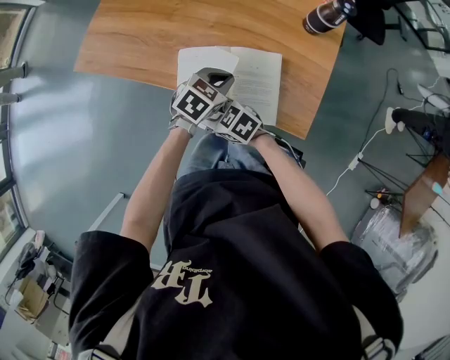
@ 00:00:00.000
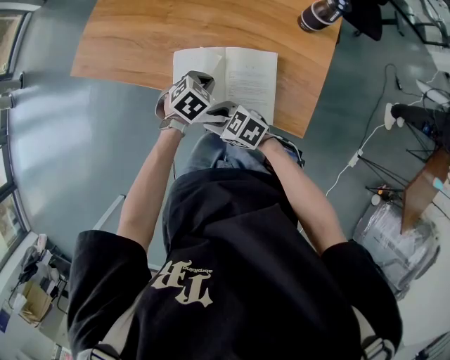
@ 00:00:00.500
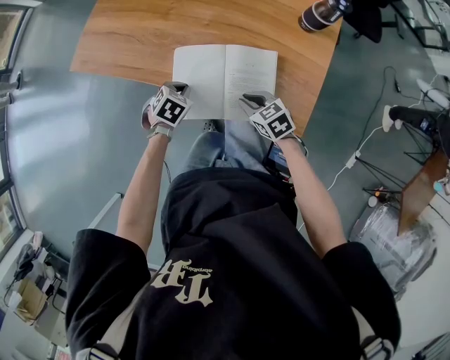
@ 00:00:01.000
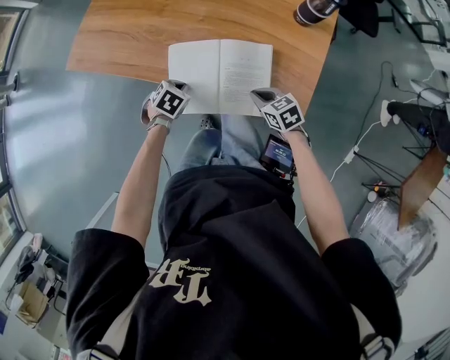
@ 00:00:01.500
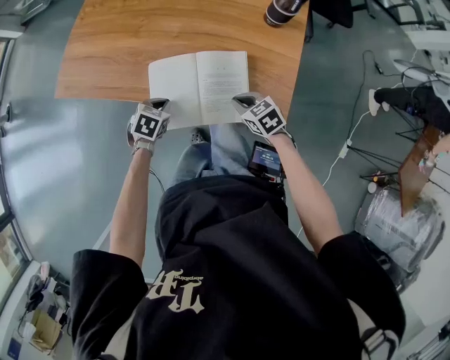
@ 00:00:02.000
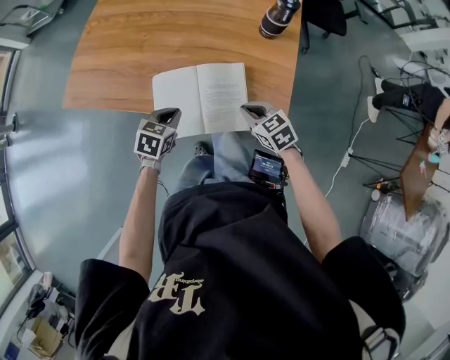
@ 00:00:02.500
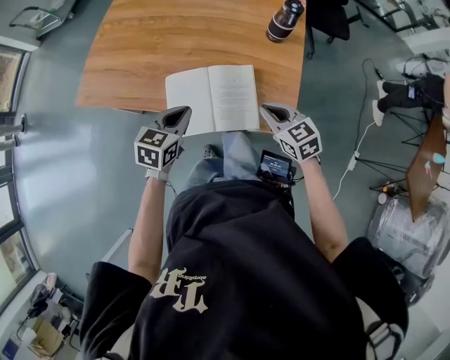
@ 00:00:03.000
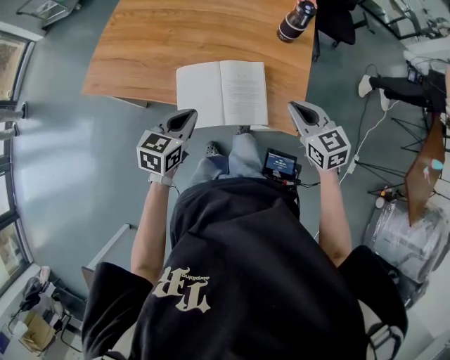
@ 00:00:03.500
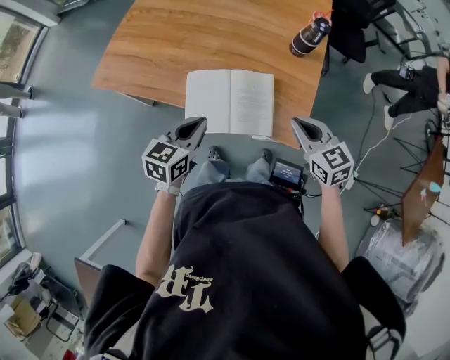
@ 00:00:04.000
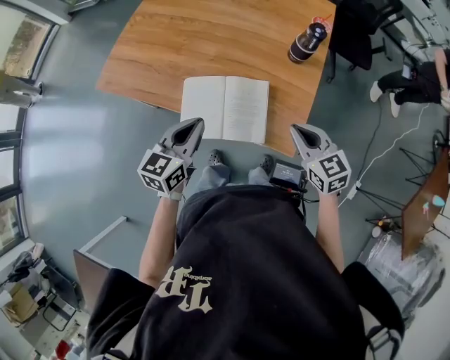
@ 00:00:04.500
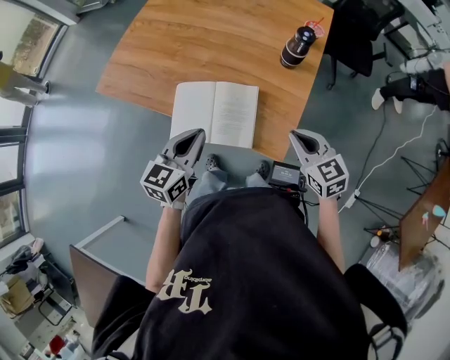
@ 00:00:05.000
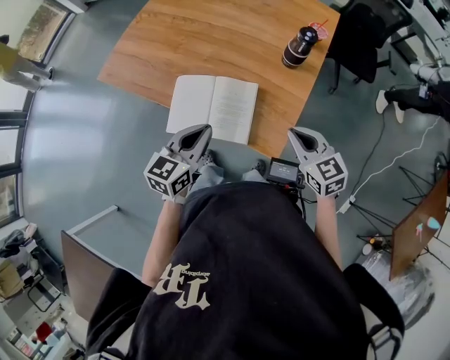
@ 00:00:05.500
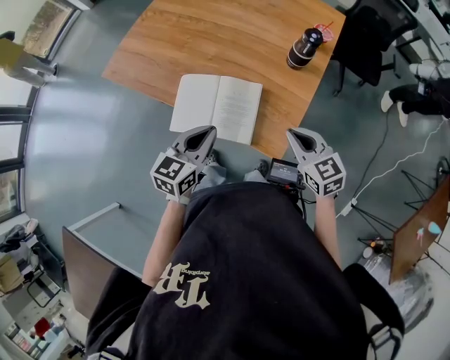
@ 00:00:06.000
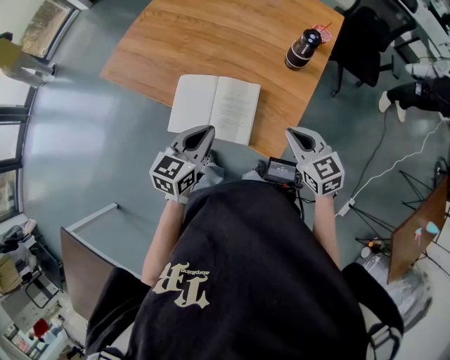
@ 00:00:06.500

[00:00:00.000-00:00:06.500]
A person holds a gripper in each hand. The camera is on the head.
00:00:00.000 to 00:00:02.000: The right gripper ends up approximately 20 cm from where it was, changes its angle by roughly 30 degrees, and closes up. Meanwhile the left gripper changes place by about 15 cm.
00:00:02.000 to 00:00:04.500: Both grippers travel together upward, approximately 25 cm. The left gripper angles its fingers upward, by some 40 degrees, while the right gripper turns by about 20 degrees.
00:00:04.500 to 00:00:06.500: The left gripper travels to the right by some 10 cm. The right gripper goes some 5 cm to the right.

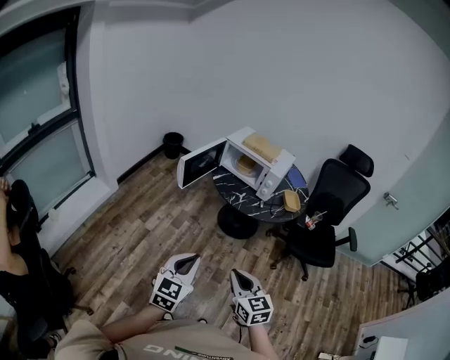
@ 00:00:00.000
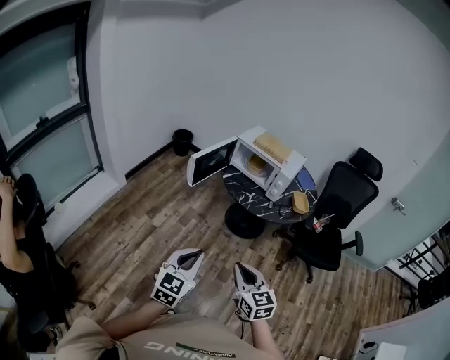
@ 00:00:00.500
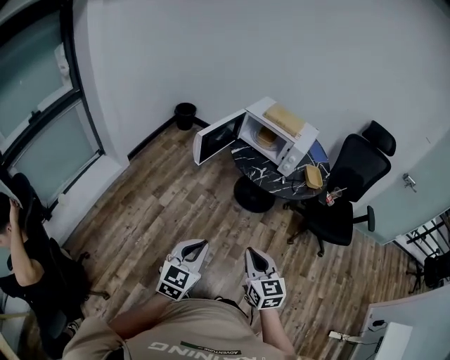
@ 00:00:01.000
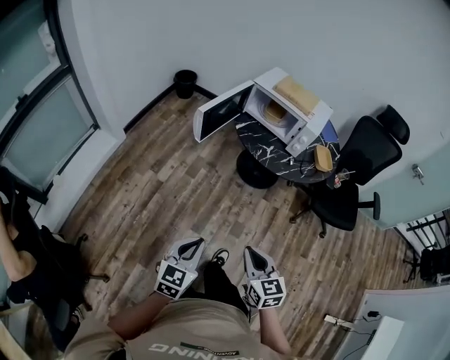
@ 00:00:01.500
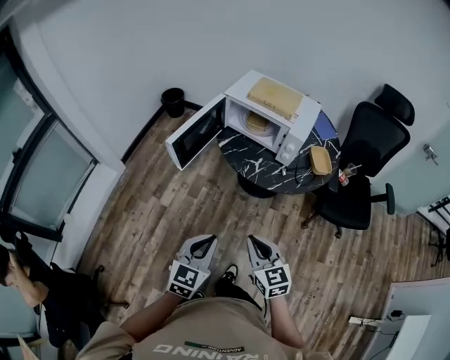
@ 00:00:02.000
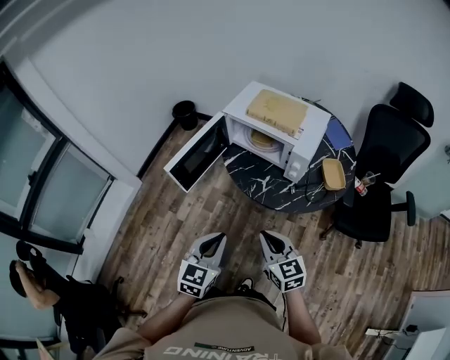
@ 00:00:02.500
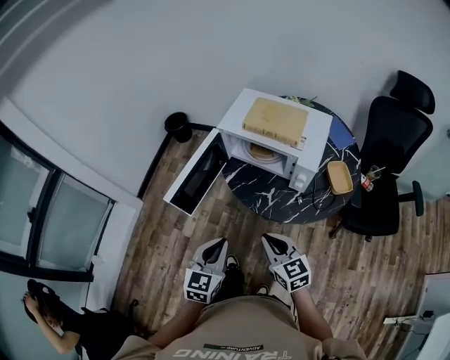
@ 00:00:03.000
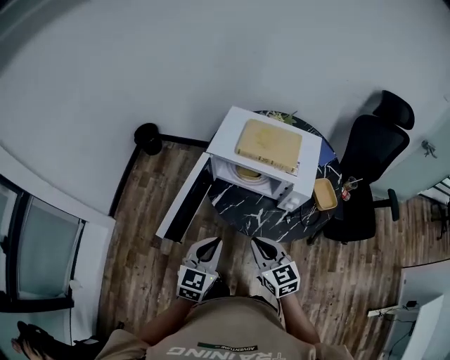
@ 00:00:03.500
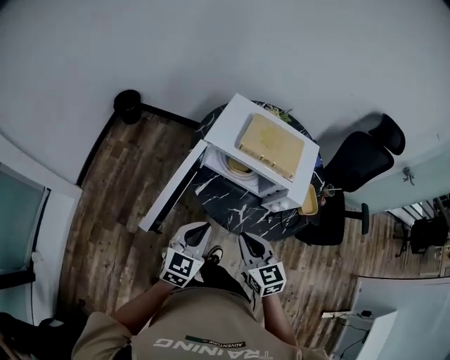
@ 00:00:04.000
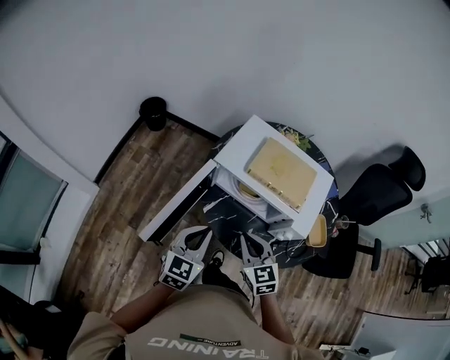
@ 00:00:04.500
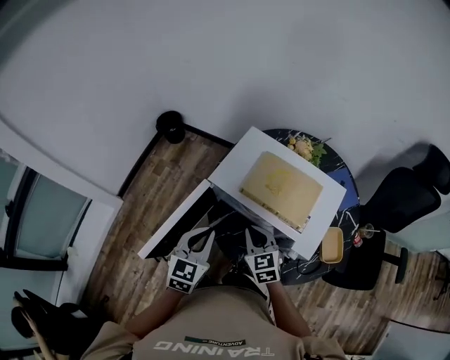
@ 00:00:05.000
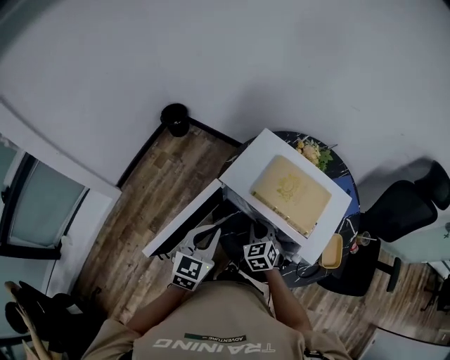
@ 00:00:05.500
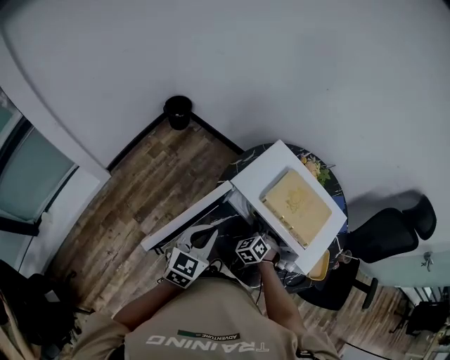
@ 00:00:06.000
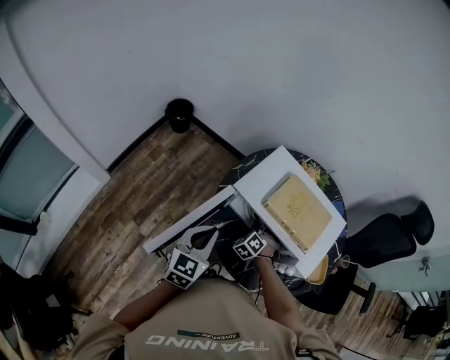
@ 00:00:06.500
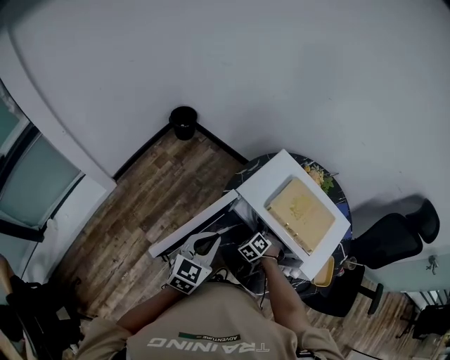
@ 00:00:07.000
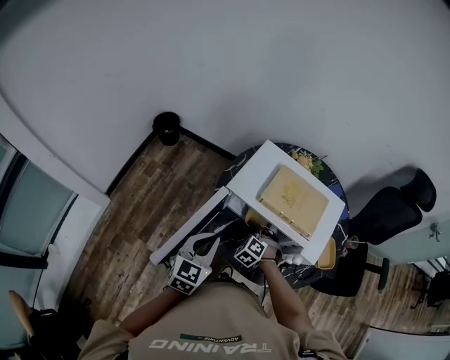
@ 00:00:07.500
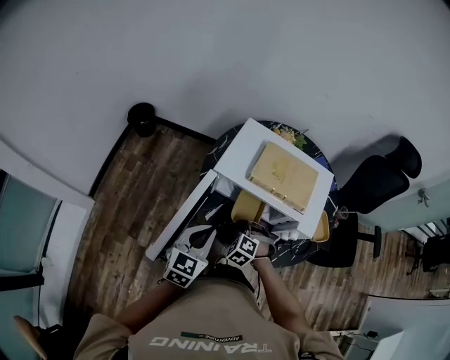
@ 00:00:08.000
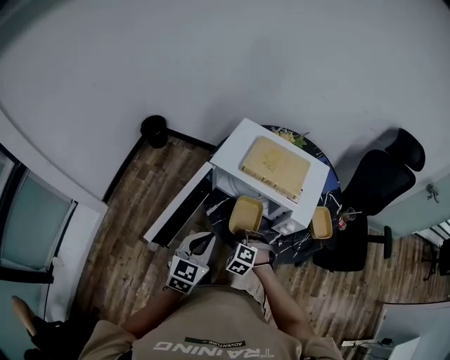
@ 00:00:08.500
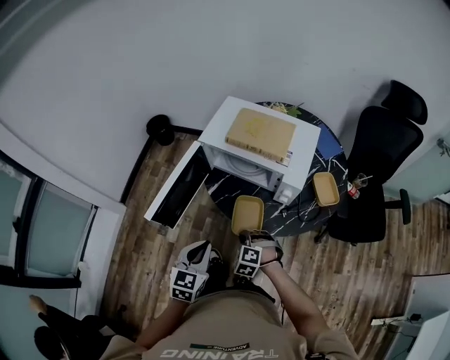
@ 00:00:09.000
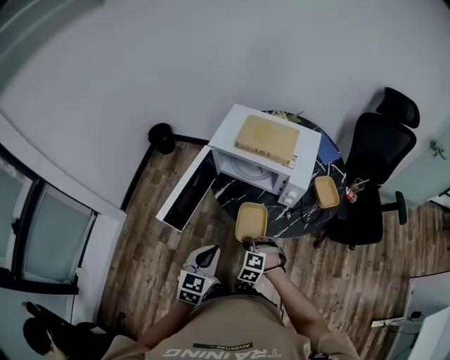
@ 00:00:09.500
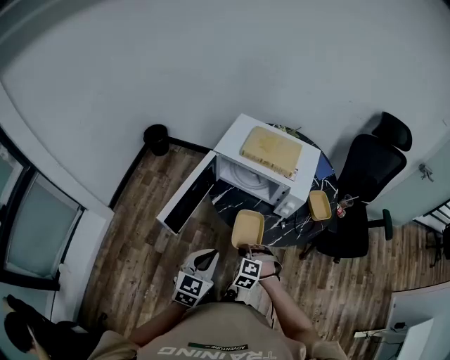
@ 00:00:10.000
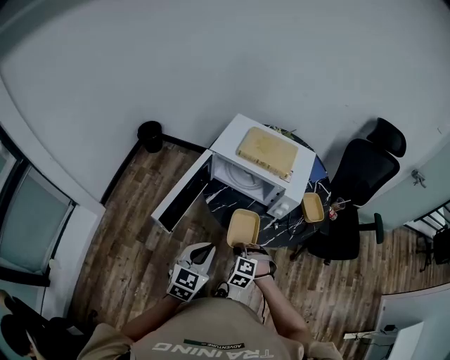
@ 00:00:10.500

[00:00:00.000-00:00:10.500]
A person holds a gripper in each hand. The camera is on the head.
00:00:00.000 to 00:00:02.000: The right gripper heads forward, covering about 20 cm. The left gripper heads forward and downward, covering approximately 20 cm.
00:00:02.000 to 00:00:04.000: Both grippers move forward, some 30 cm.
00:00:04.000 to 00:00:06.500: The right gripper moves forward and downward, some 35 cm, and rotates around the line of its fingers by some 50 degrees, counterclockwise from behind. The left gripper heads forward, covering about 10 cm.
00:00:06.500 to 00:00:08.500: The right gripper shifts about 20 cm backward; the left gripper shifts roughly 10 cm backward and to the right.
00:00:08.500 to 00:00:10.500: The two grippers go roughly 15 cm backward.

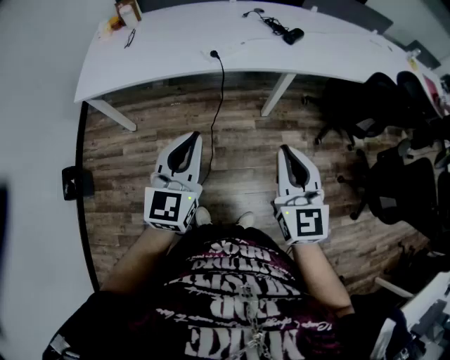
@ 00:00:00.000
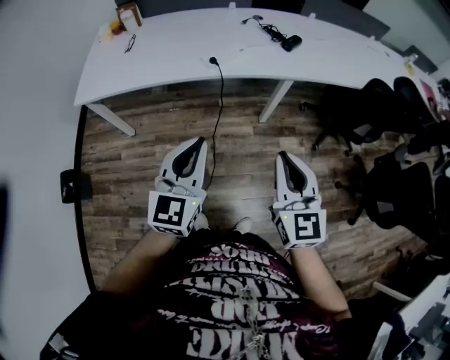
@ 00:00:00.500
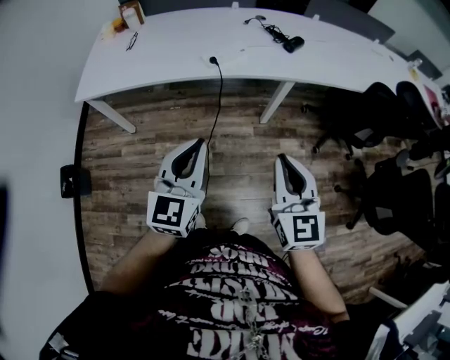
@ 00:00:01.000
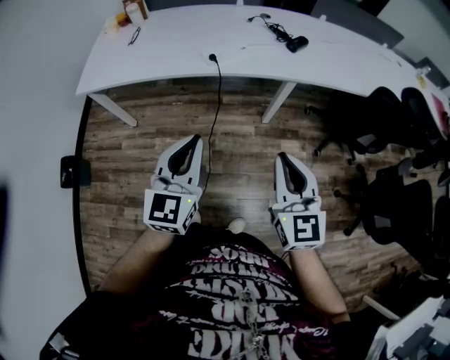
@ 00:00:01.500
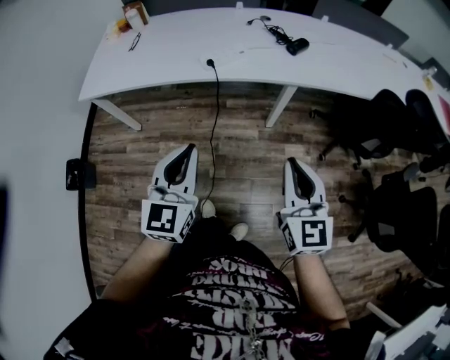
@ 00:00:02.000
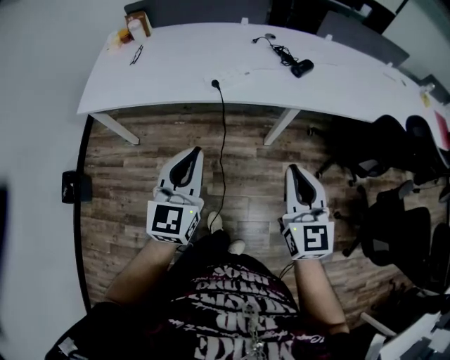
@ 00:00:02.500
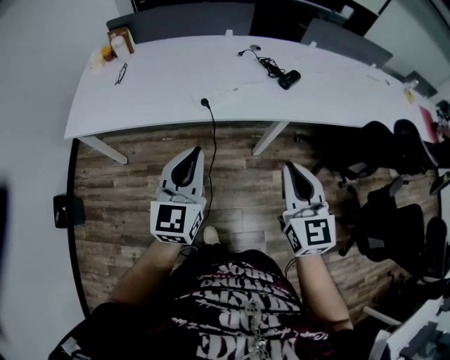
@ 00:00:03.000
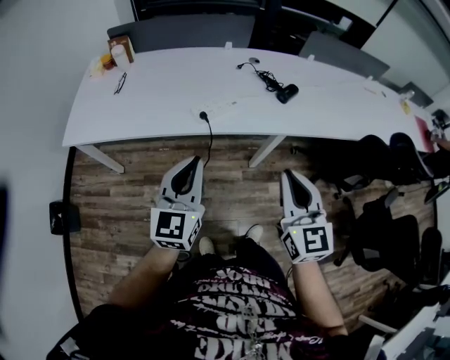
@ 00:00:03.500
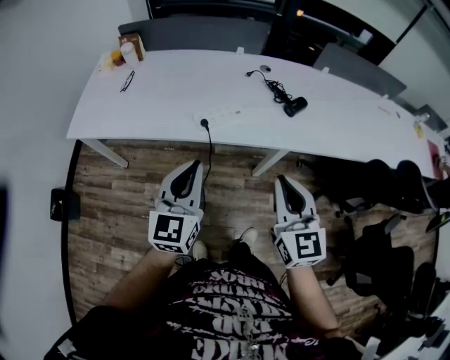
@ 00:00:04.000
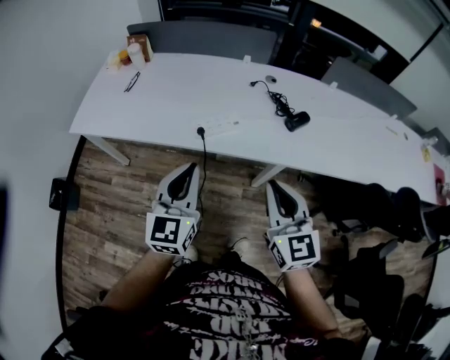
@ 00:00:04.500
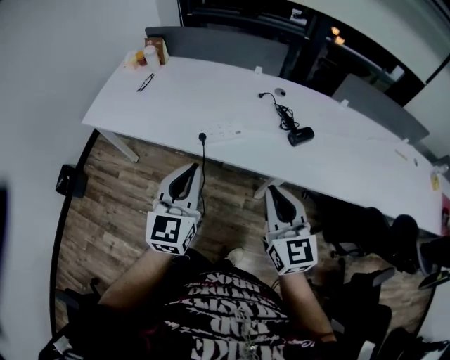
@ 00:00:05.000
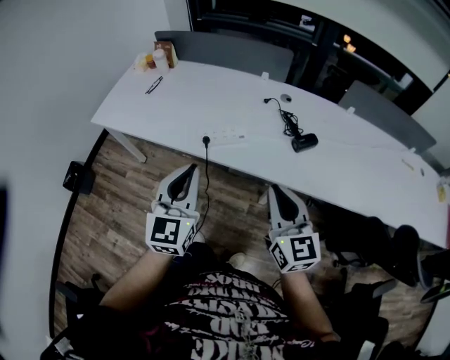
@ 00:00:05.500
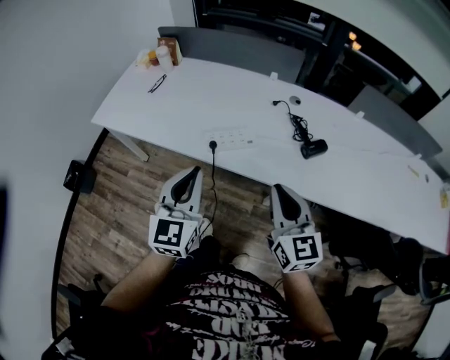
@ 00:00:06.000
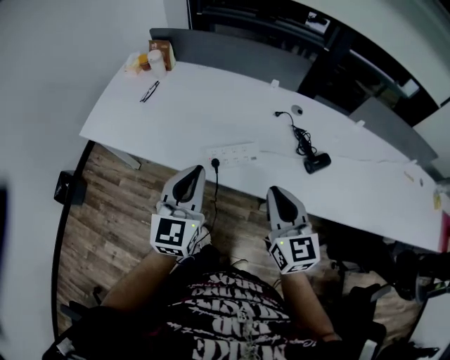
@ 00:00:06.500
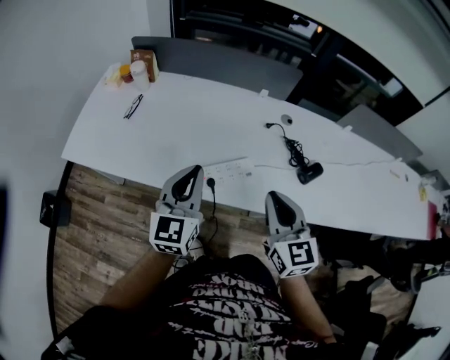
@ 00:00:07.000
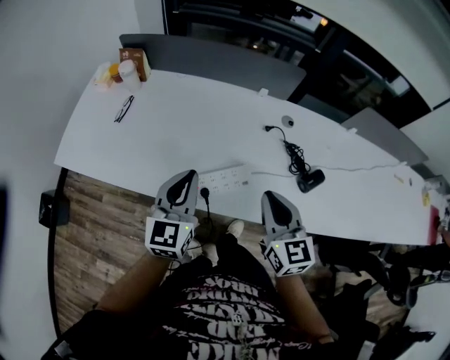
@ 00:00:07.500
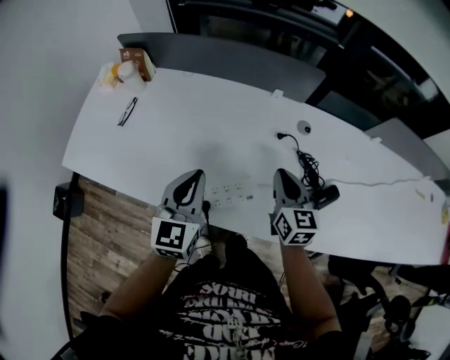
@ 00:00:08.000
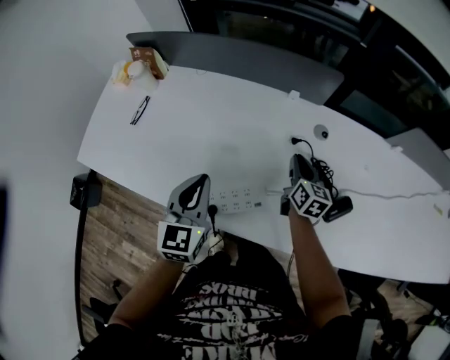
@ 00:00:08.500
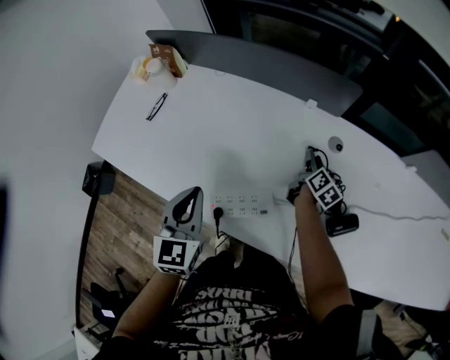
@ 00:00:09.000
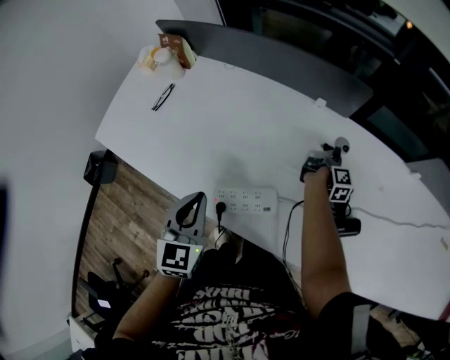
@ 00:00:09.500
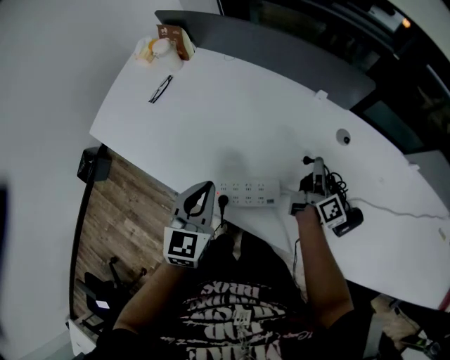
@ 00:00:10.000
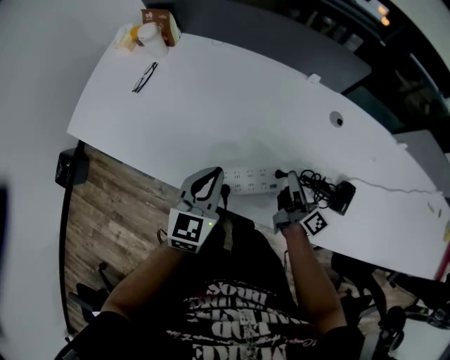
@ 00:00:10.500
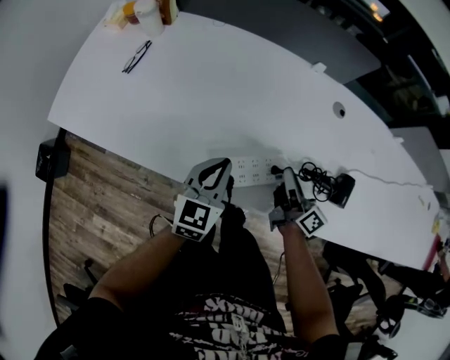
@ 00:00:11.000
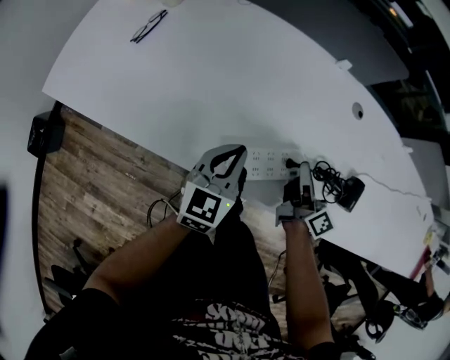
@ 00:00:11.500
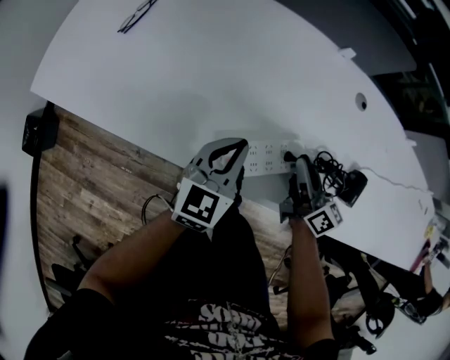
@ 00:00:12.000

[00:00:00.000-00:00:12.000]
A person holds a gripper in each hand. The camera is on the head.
00:00:00.000 to 00:00:02.000: Both grippers move to the right, about 10 cm.
00:00:02.000 to 00:00:04.000: The grippers both shift forward by approximately 20 cm.
00:00:04.000 to 00:00:06.000: The right gripper is displaced forward and to the right by approximately 15 cm. Meanwhile the left gripper shifts some 10 cm forward and to the right.
00:00:06.000 to 00:00:08.000: The left gripper is displaced forward by about 30 cm, while the right gripper goes some 35 cm forward and downward.
00:00:08.000 to 00:00:10.000: The left gripper shifts by some 5 cm. Meanwhile the right gripper heads downward, forward and to the right, covering some 15 cm, twists about 50 degrees clockwise, seen from behind, and opens, then closes again.
00:00:10.000 to 00:00:12.000: The right gripper goes about 20 cm to the left and backward, and rotates approximately 30 degrees, while the left gripper is displaced downward by some 10 cm, and swivels about 20 degrees.
